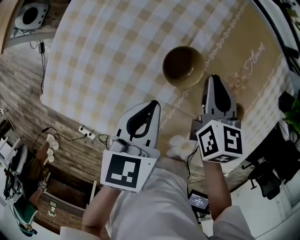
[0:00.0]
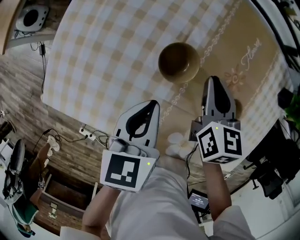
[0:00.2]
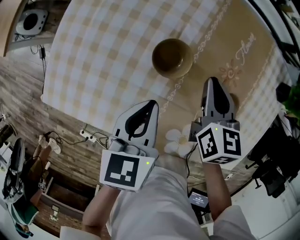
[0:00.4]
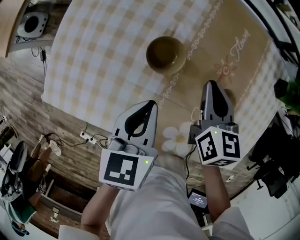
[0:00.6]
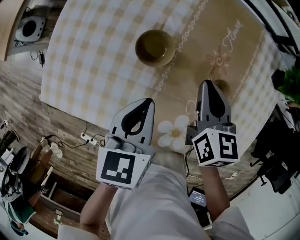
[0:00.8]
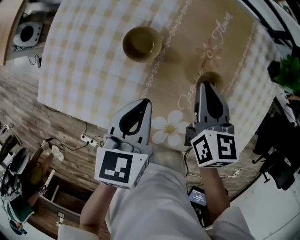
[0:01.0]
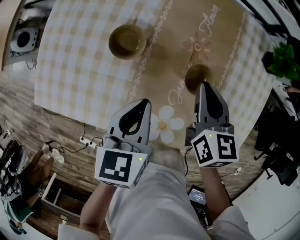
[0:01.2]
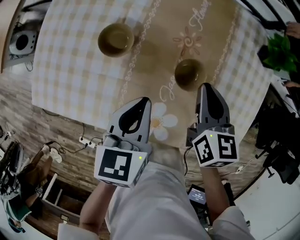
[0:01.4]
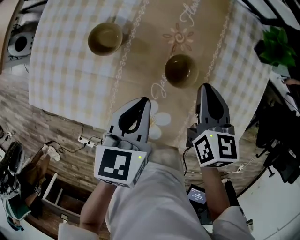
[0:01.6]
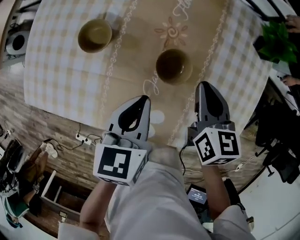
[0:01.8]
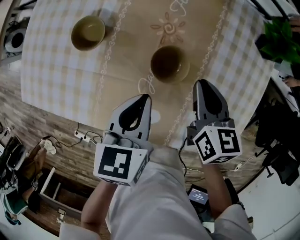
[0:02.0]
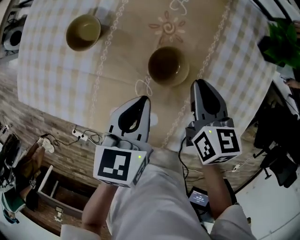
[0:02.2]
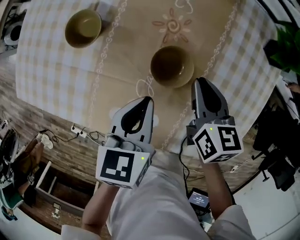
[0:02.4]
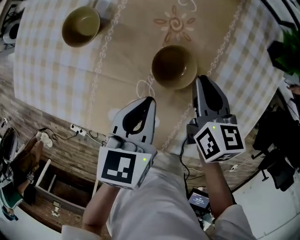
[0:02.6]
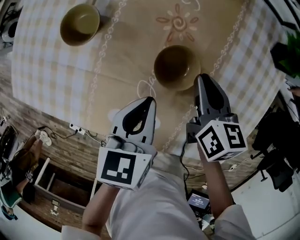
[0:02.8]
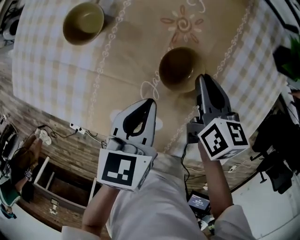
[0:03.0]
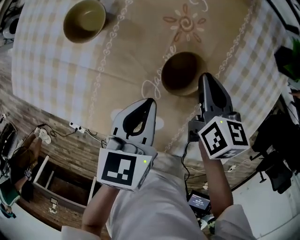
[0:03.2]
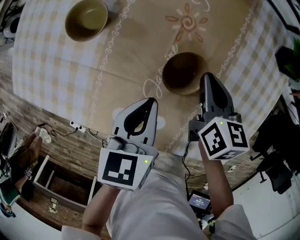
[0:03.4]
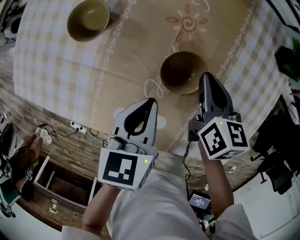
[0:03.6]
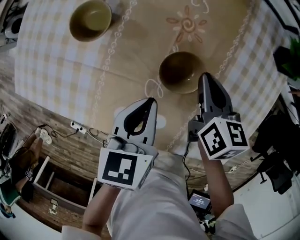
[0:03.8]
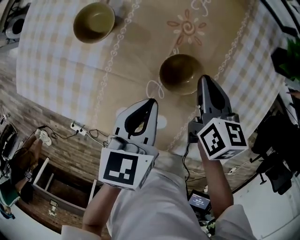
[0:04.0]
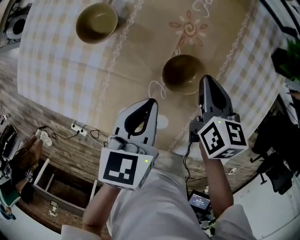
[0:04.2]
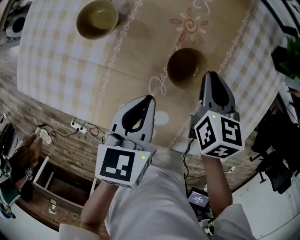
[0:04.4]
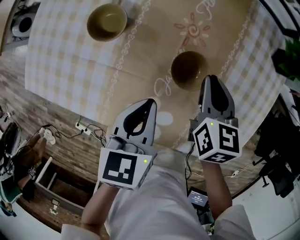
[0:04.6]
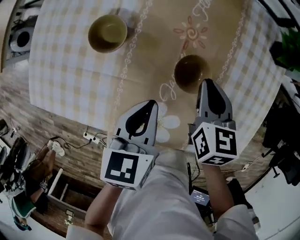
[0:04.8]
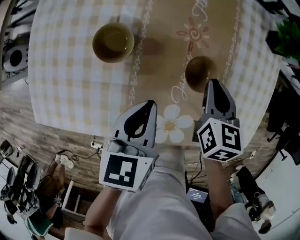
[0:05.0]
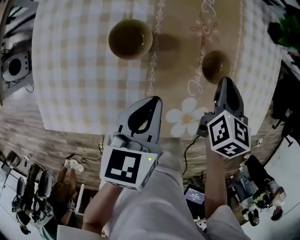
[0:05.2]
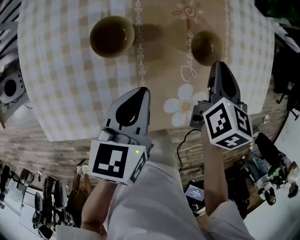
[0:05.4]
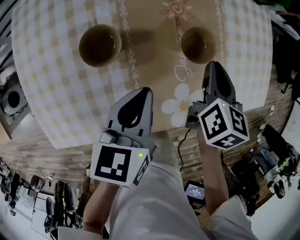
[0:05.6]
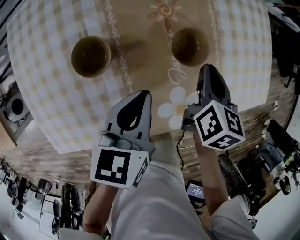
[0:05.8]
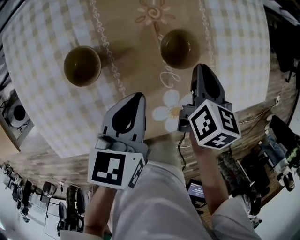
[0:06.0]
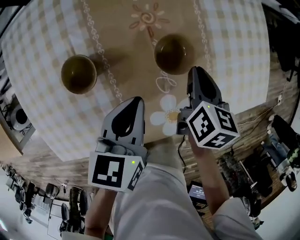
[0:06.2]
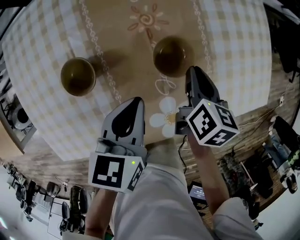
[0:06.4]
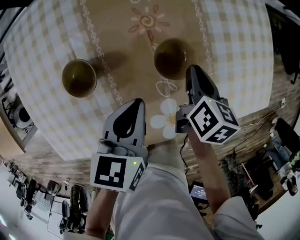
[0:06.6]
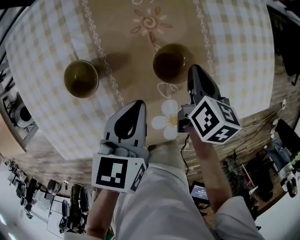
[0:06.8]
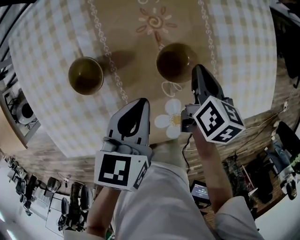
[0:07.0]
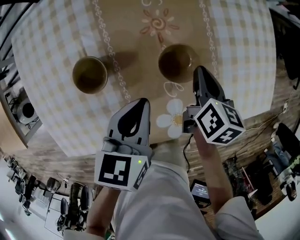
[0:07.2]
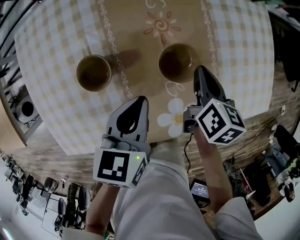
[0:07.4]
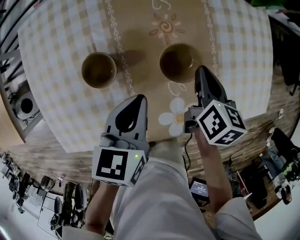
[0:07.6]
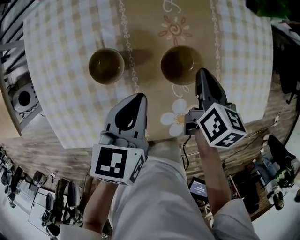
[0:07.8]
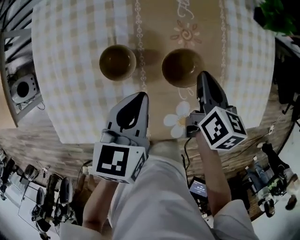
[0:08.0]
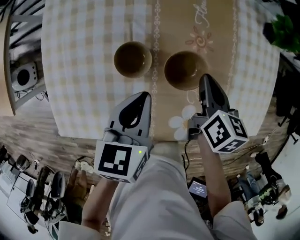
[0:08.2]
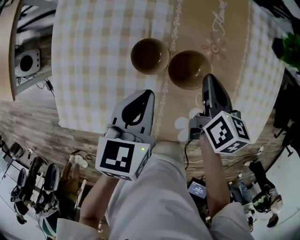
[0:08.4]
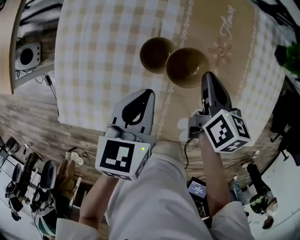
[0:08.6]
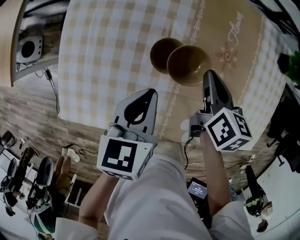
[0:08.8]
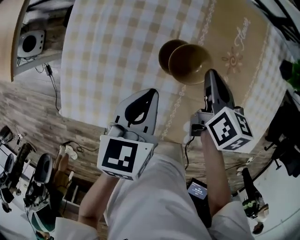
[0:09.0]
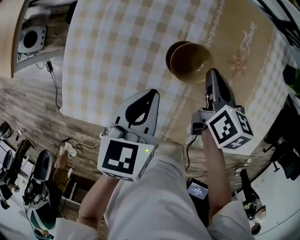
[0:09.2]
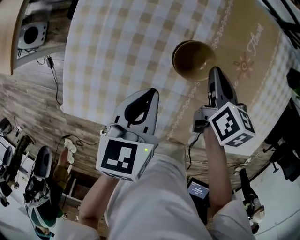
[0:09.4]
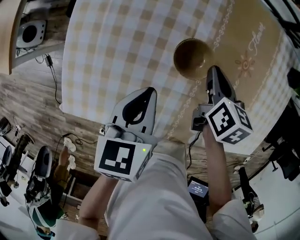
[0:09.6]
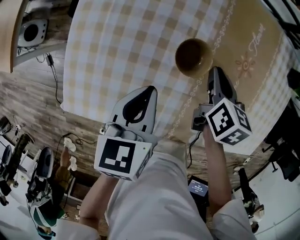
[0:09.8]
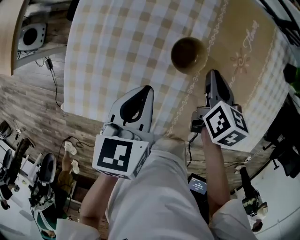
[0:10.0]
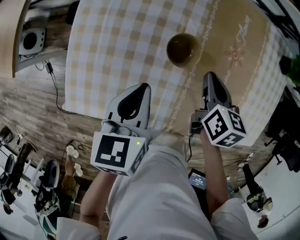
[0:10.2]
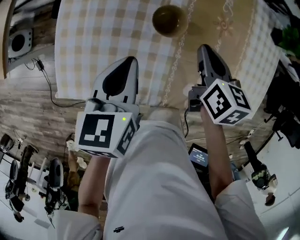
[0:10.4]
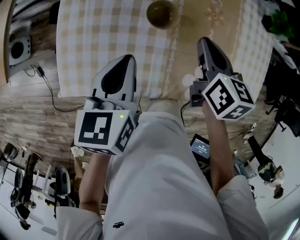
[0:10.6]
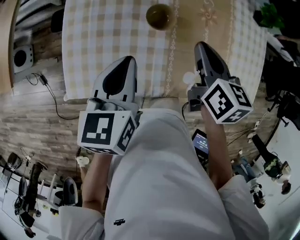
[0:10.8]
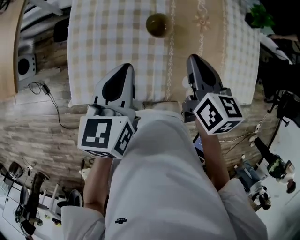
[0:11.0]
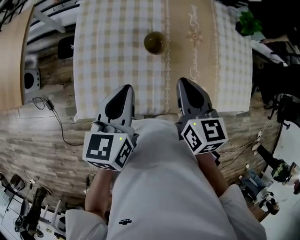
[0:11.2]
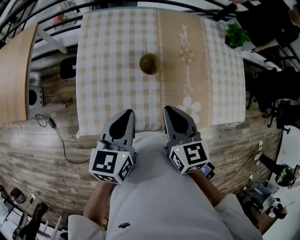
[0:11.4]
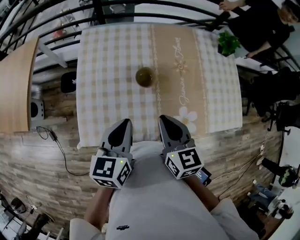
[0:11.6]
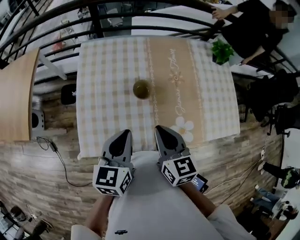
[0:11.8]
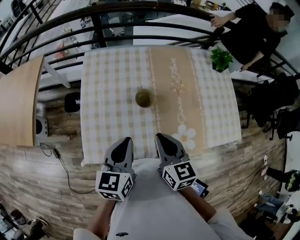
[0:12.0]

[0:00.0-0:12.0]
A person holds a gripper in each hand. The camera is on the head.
0:00.0 to 0:01.6: Both grippers move to the right, approximately 25 cm.
0:01.6 to 0:03.0: The left gripper is displaced downward and to the right by roughly 10 cm. Meanwhile the right gripper is displaced downward by about 10 cm.
0:03.0 to 0:04.4: The grippers stay close to where they were, moving slightly.
0:04.4 to 0:06.0: The left gripper rotates approximately 40 degrees; the right gripper shifts by approximately 5 cm, and rotates some 50 degrees.
0:06.0 to 0:07.6: The grippers stay close to where they were, moving slightly.
0:07.6 to 0:09.0: Both grippers move to the left, approximately 20 cm. The right gripper turns by about 30 degrees. The left gripper rotates approximately 20 degrees.
0:09.0 to 0:10.4: The right gripper heads backward, covering approximately 5 cm, and reaches about 5 cm downward, then returns; the left gripper moves roughly 5 cm.
0:10.4 to 0:12.0: The left gripper goes roughly 20 cm upward and backward, and swivels roughly 20 degrees, while the right gripper travels backward and upward by roughly 25 cm.

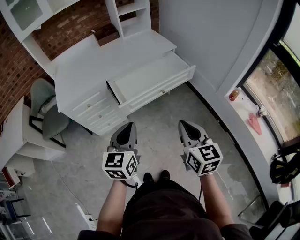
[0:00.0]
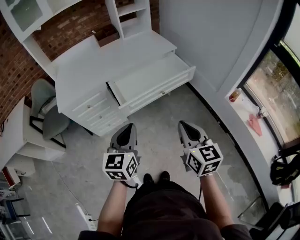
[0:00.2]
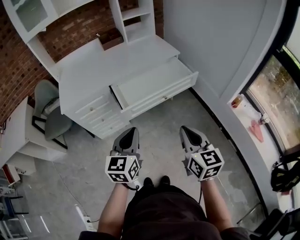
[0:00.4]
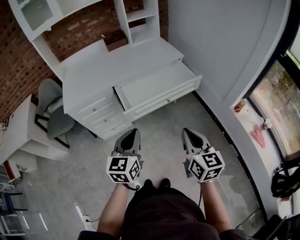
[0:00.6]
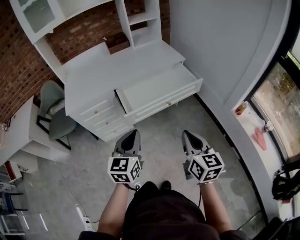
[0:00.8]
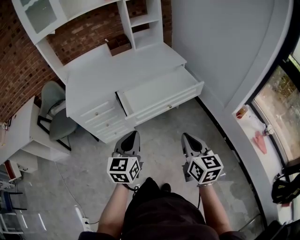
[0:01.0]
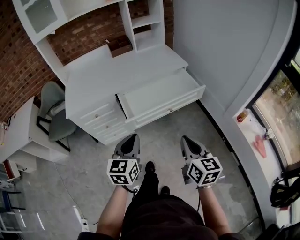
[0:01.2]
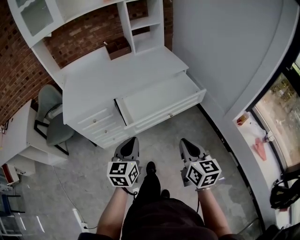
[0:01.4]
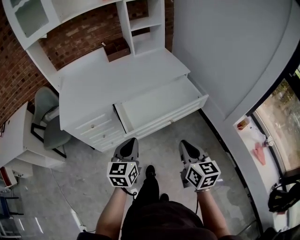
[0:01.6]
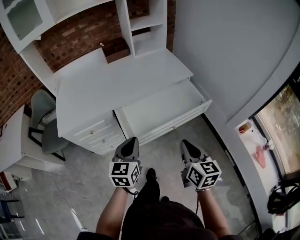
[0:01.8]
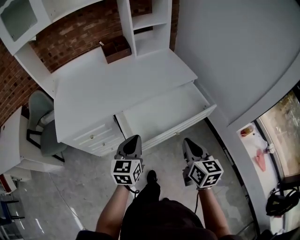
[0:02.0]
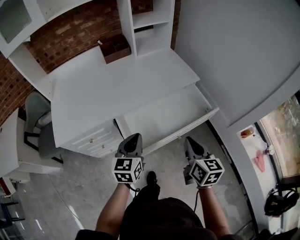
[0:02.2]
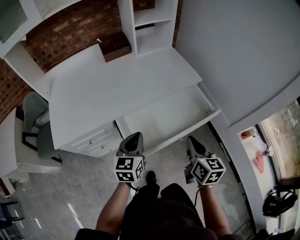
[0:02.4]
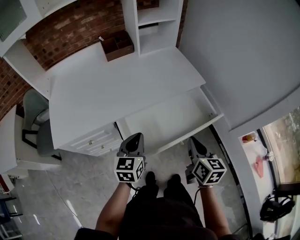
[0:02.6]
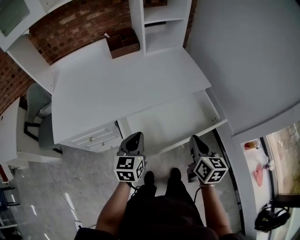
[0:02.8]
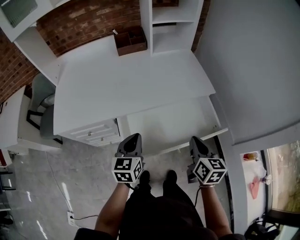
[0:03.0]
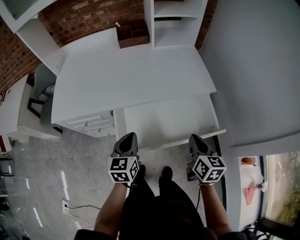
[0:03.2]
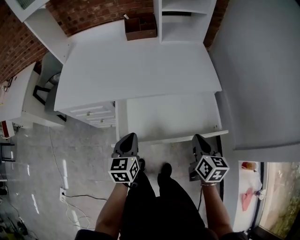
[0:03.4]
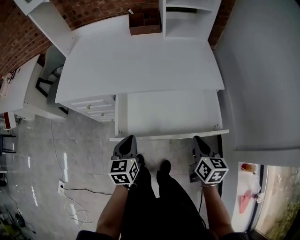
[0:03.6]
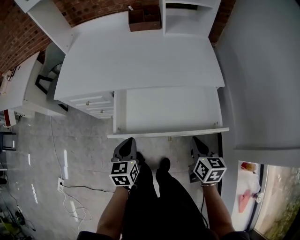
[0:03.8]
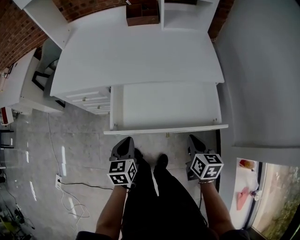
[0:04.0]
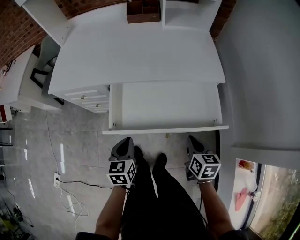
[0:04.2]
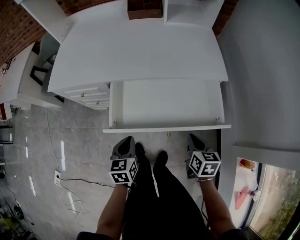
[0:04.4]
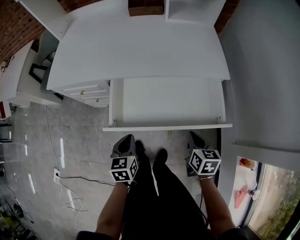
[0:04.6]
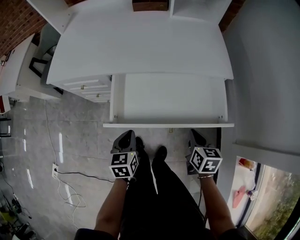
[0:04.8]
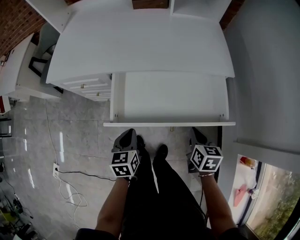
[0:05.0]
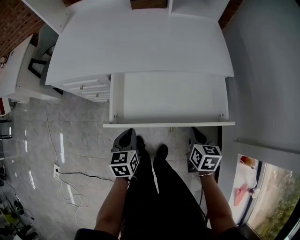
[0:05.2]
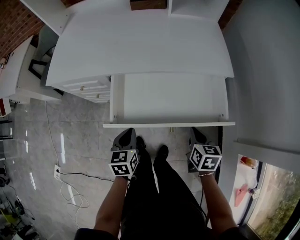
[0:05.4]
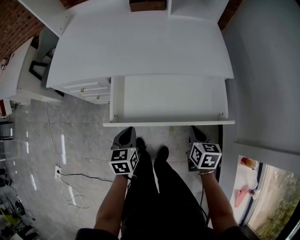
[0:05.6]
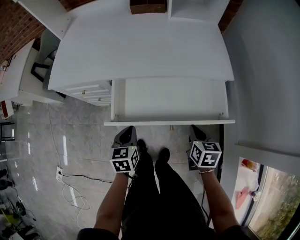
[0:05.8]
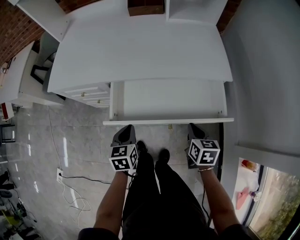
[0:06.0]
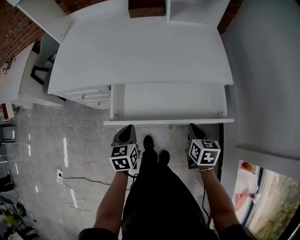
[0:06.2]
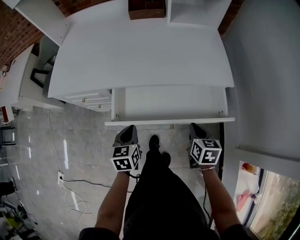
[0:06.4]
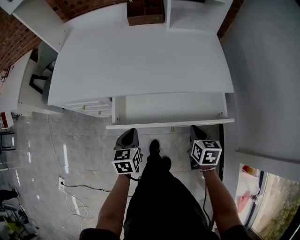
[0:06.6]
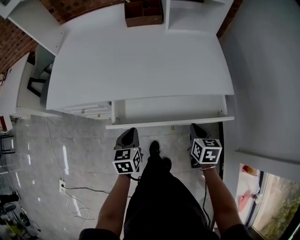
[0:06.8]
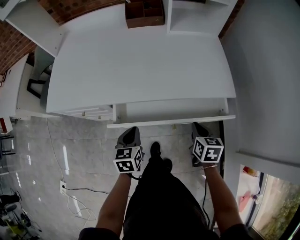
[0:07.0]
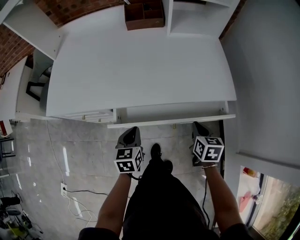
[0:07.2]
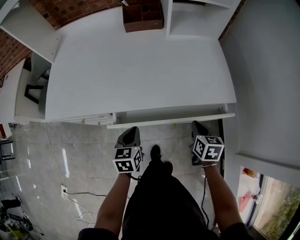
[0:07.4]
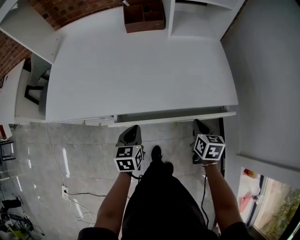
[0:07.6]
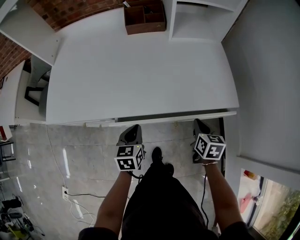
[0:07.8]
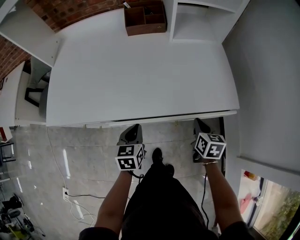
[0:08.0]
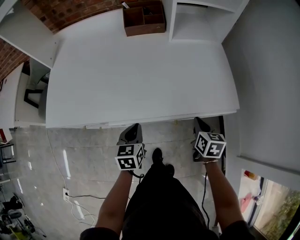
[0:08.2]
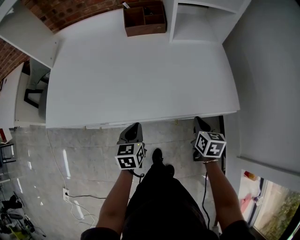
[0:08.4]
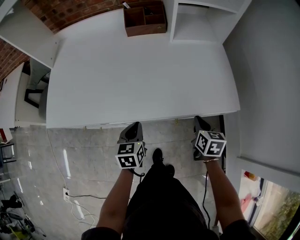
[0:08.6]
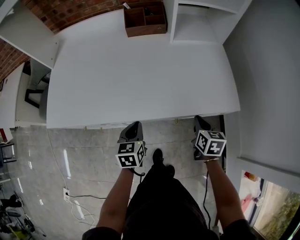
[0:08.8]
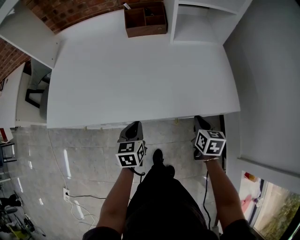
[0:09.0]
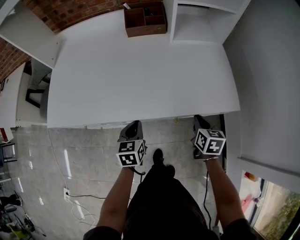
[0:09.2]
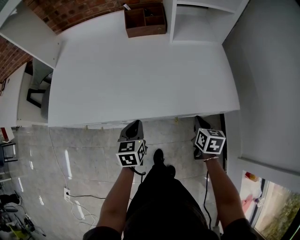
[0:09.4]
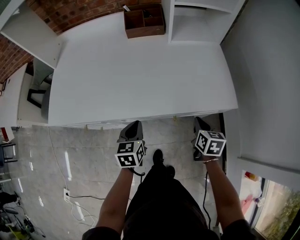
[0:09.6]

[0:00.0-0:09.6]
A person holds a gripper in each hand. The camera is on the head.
0:00.0 to 0:01.6: The two grippers go some 10 cm forward.
0:01.6 to 0:03.2: The two grippers go roughly 25 cm forward. The left gripper swivels some 20 degrees.
0:03.2 to 0:04.8: The right gripper travels downward by approximately 10 cm. The left gripper travels downward and backward by roughly 15 cm.
0:04.8 to 0:06.4: Both grippers move forward, approximately 10 cm.
0:06.4 to 0:08.0: Both grippers move forward, about 15 cm.
0:08.0 to 0:09.6: The grippers make only small movements.

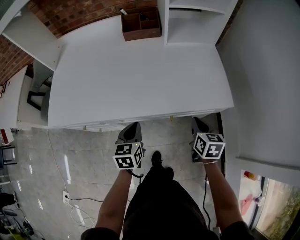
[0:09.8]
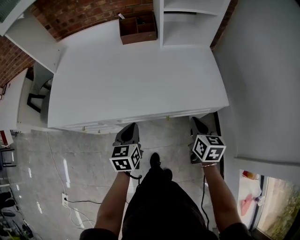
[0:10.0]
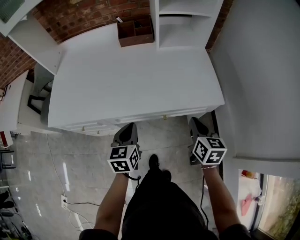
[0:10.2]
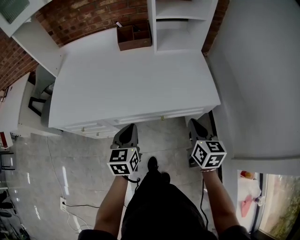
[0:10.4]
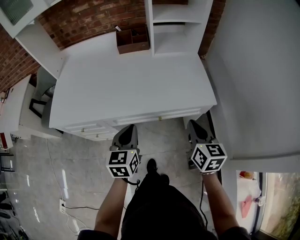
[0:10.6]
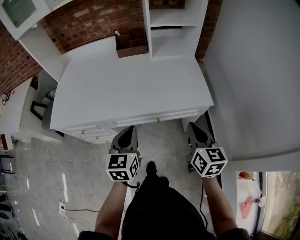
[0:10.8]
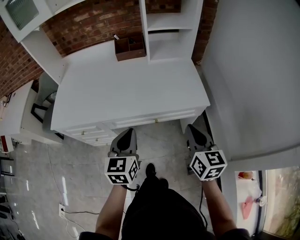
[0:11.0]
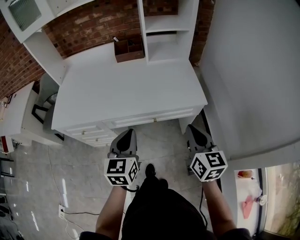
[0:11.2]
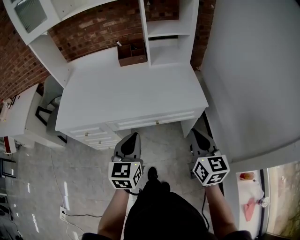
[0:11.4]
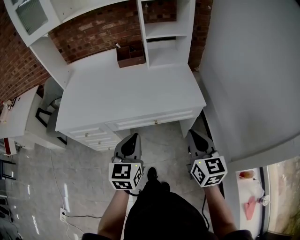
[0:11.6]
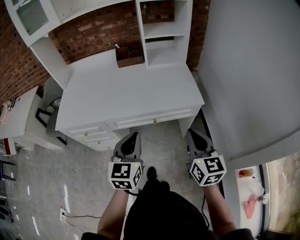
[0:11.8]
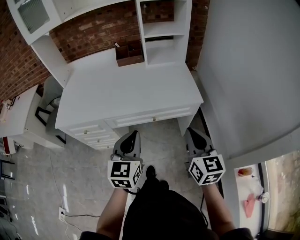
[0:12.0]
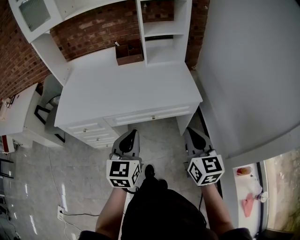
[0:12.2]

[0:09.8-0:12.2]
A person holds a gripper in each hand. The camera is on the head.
0:09.8 to 0:11.0: The left gripper moves upward, backward and to the right, about 20 cm, while the right gripper moves upward and backward, about 20 cm, and swivels about 20 degrees.
0:11.0 to 0:12.2: The right gripper heads backward, covering about 10 cm. Meanwhile the left gripper is displaced backward and upward by roughly 10 cm.
